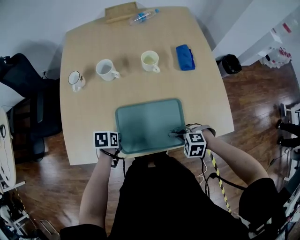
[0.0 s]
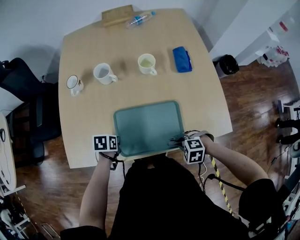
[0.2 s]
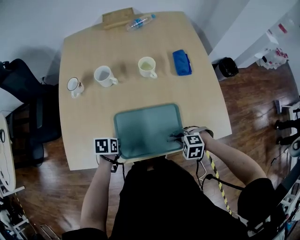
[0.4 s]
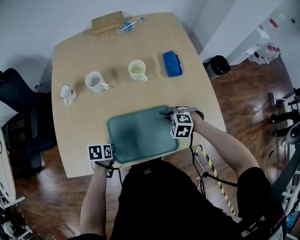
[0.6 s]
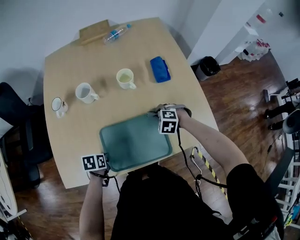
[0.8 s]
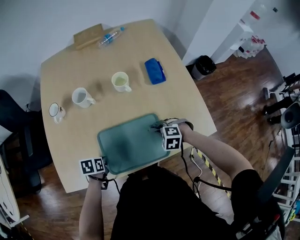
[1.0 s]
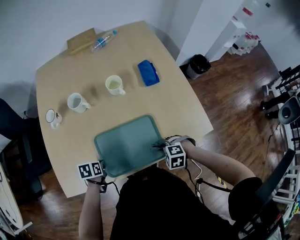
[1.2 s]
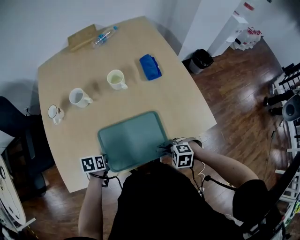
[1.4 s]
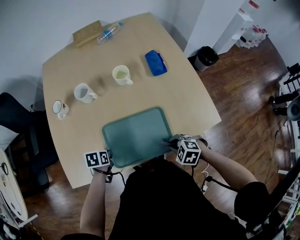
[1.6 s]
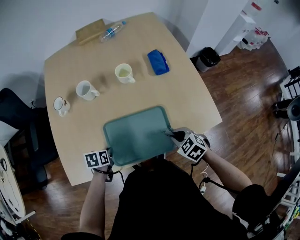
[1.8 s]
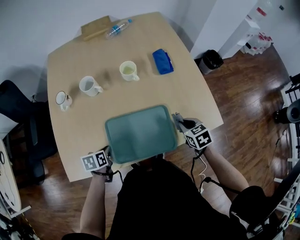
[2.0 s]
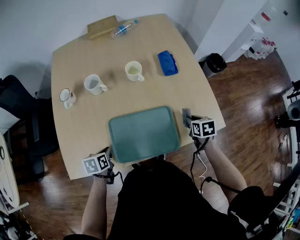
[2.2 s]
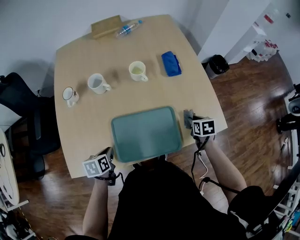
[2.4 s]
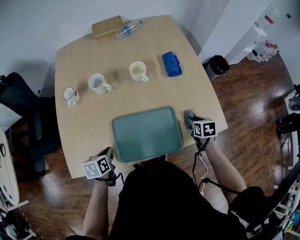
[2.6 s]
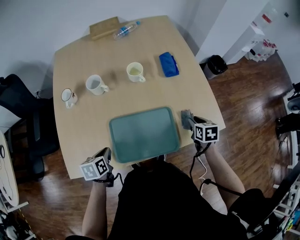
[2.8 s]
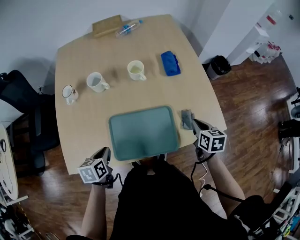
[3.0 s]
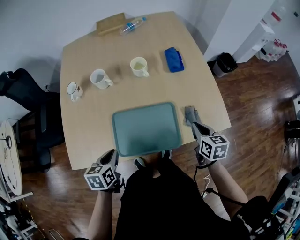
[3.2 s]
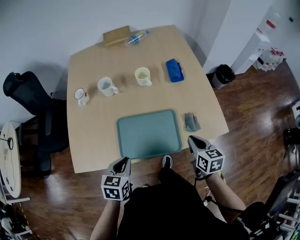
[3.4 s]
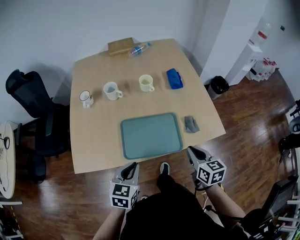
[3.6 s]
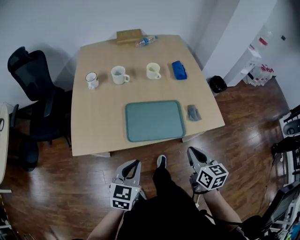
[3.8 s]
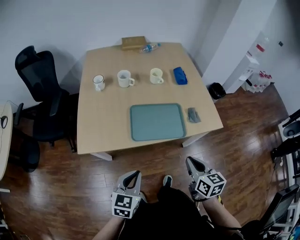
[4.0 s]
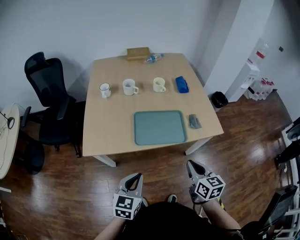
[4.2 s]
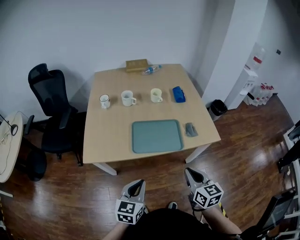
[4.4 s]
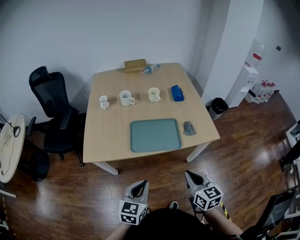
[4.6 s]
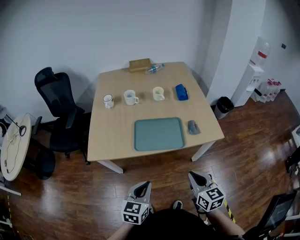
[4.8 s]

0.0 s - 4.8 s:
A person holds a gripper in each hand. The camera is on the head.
0.0 s - 1.6 s: The right gripper changes its angle by roughly 20 degrees.
1.6 s - 3.2 s: The left gripper shifts approximately 10 cm upward, and changes its angle by about 30 degrees, while the right gripper shifts some 15 cm to the right, upward and forward, twists approximately 60 degrees clockwise, seen from behind, and opens, then closes once more.
3.2 s - 4.8 s: The right gripper goes about 30 cm backward, and changes its angle by some 20 degrees. The left gripper travels backward and to the right by approximately 30 cm, and rotates roughly 30 degrees.

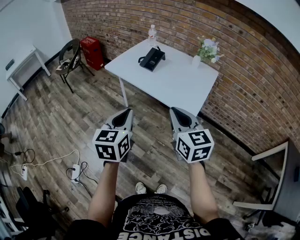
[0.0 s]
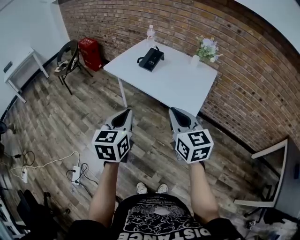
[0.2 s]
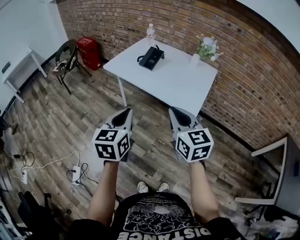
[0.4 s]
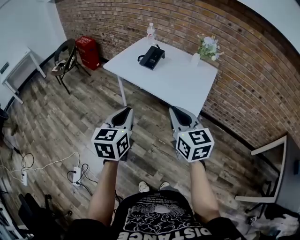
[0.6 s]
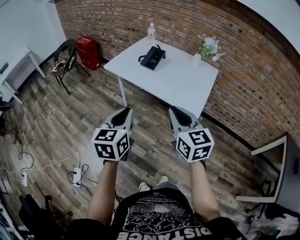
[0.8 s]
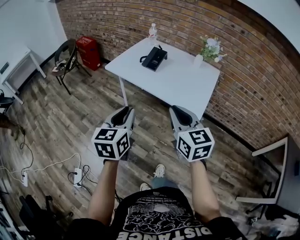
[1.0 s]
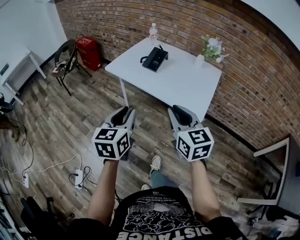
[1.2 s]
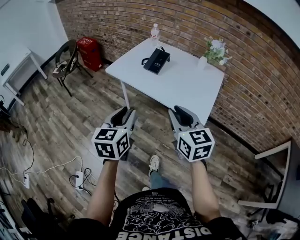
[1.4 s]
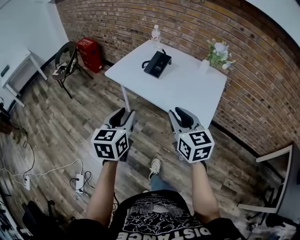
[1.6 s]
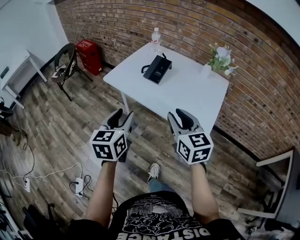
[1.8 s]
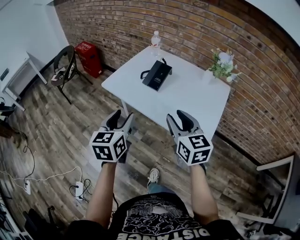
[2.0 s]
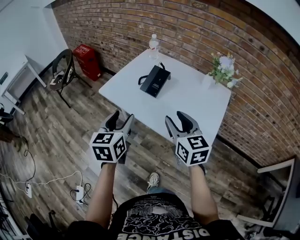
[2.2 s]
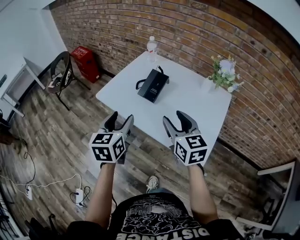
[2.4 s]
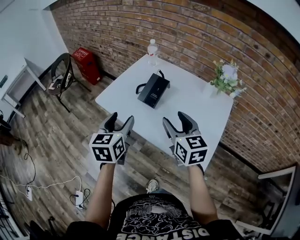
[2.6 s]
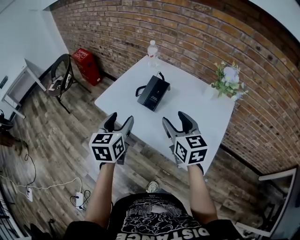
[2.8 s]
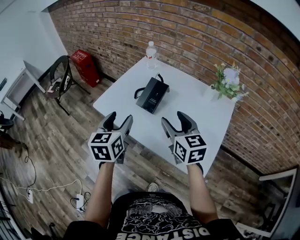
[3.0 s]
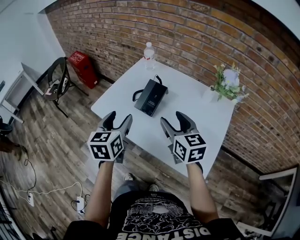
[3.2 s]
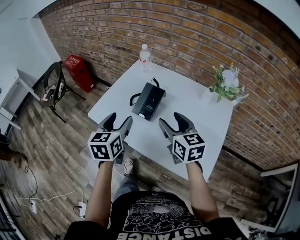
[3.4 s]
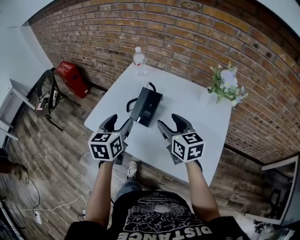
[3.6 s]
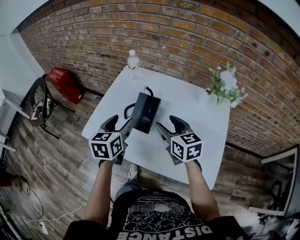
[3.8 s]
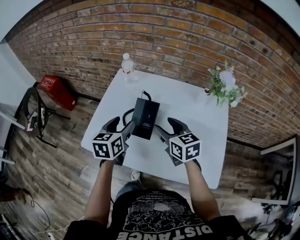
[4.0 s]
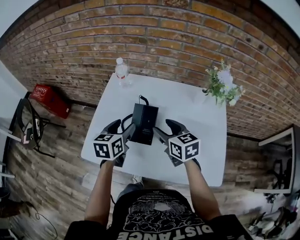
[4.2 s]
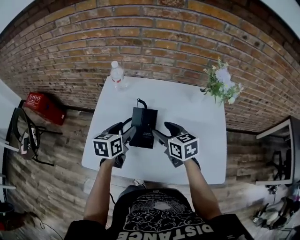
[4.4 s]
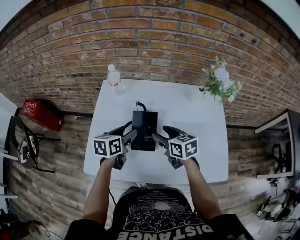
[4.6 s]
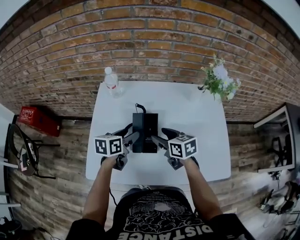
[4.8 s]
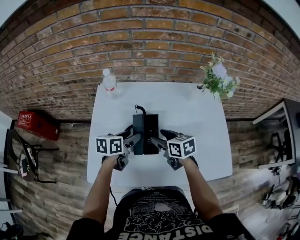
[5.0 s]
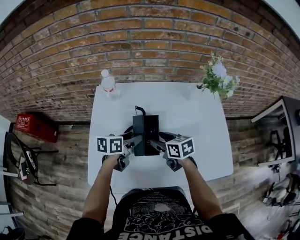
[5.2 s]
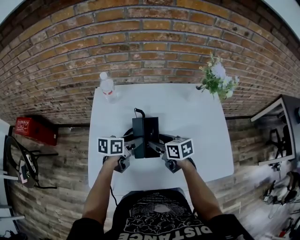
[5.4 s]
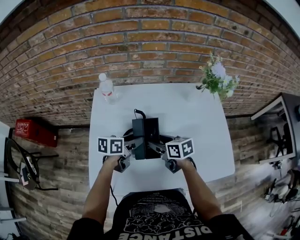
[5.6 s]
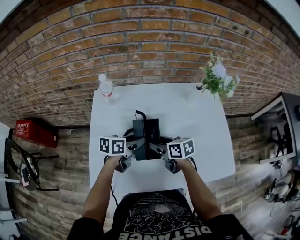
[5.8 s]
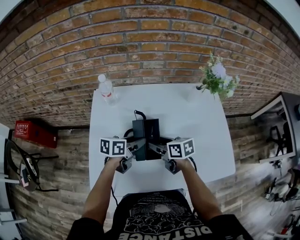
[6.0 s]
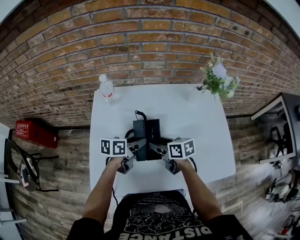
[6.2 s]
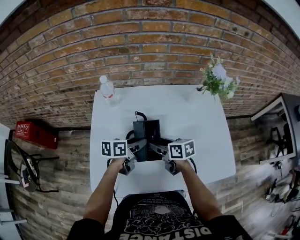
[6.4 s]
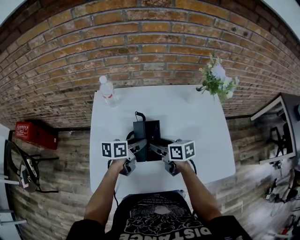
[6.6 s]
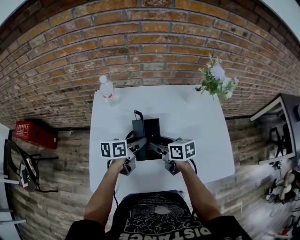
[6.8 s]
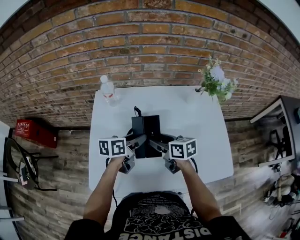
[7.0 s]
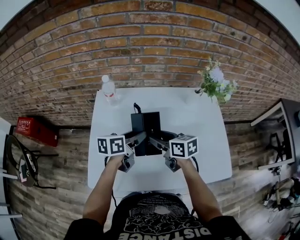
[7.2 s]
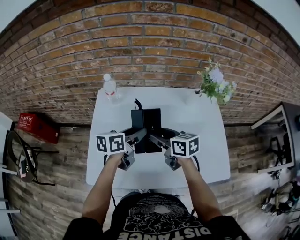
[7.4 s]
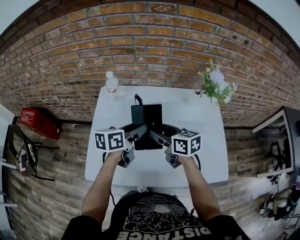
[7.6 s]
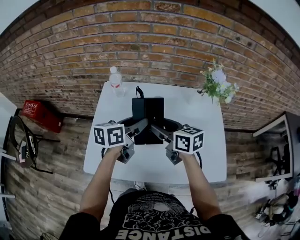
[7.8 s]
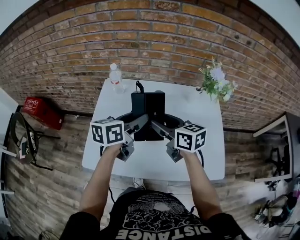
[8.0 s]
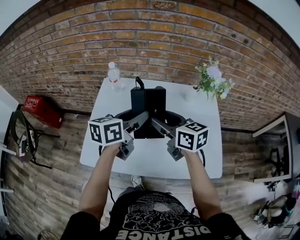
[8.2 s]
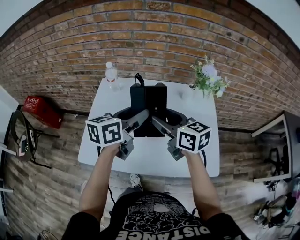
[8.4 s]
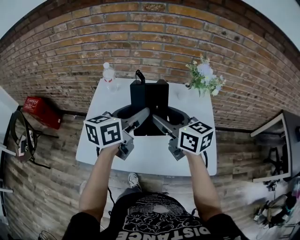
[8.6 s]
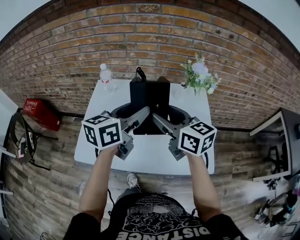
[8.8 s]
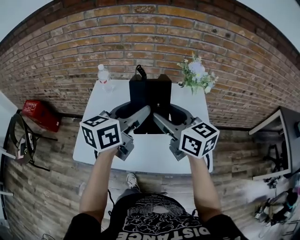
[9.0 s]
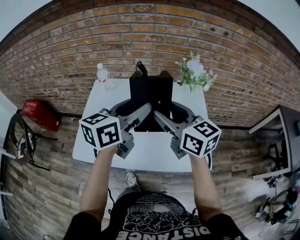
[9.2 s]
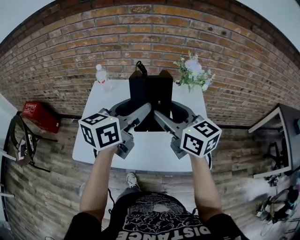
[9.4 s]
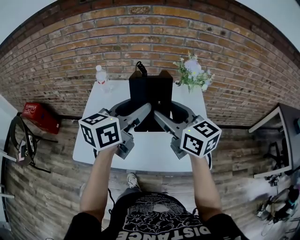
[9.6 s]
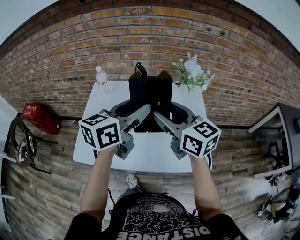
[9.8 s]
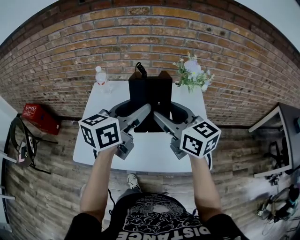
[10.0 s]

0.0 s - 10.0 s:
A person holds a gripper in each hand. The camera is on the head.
0.0 s - 1.4 s: The right gripper travels forward by approximately 10 cm. Meanwhile the left gripper goes about 10 cm forward and to the left, and opens its fingers.
1.4 s - 2.8 s: Both grippers move forward, roughly 30 cm. The right gripper opens up. The left gripper opens its fingers.
2.8 s - 4.2 s: The right gripper heads forward and downward, covering about 20 cm. The left gripper is displaced forward by about 25 cm, and swivels approximately 30 degrees.
4.2 s - 5.8 s: The left gripper moves downward and forward, approximately 10 cm, and changes its angle by some 40 degrees. The right gripper goes roughly 10 cm downward, and changes its angle by approximately 30 degrees.
5.8 s - 7.2 s: Both grippers travel together upward, about 5 cm.
7.2 s - 8.6 s: The right gripper moves upward and to the right, about 20 cm, and turns by roughly 20 degrees. Meanwhile the left gripper heads upward and backward, covering some 20 cm, and rotates approximately 20 degrees.
8.6 s - 10.0 s: Both grippers travel together upward and to the right, some 5 cm.

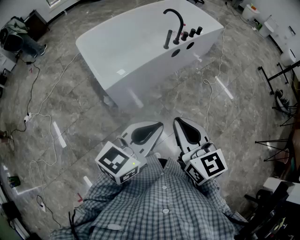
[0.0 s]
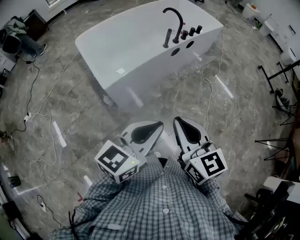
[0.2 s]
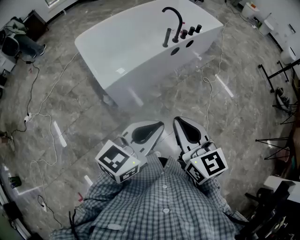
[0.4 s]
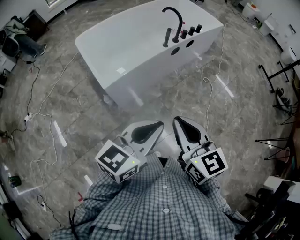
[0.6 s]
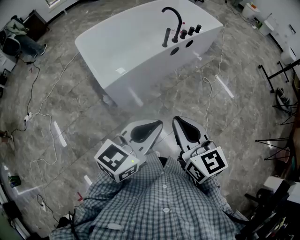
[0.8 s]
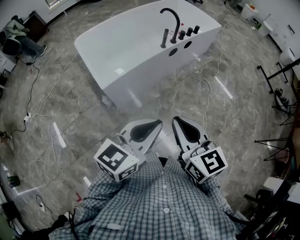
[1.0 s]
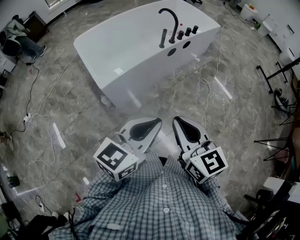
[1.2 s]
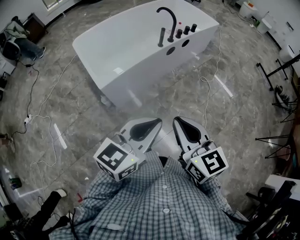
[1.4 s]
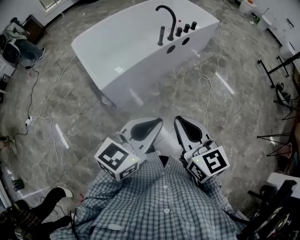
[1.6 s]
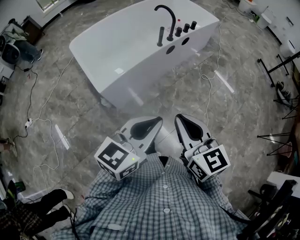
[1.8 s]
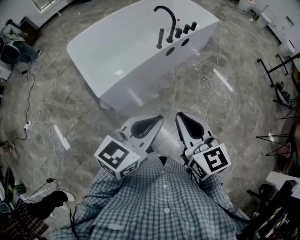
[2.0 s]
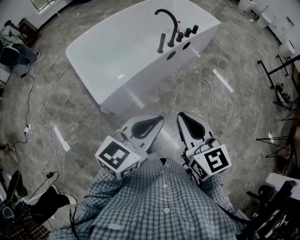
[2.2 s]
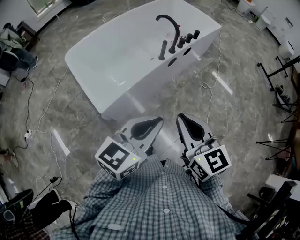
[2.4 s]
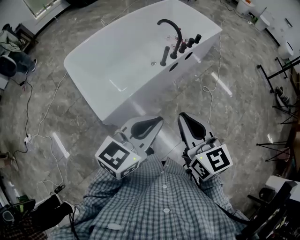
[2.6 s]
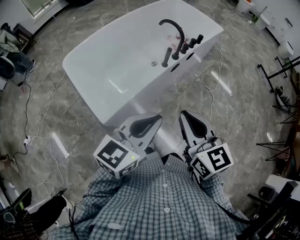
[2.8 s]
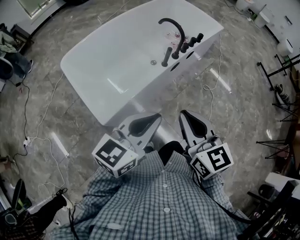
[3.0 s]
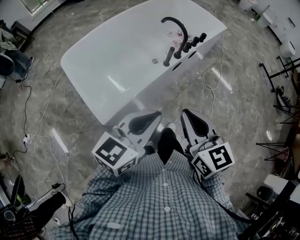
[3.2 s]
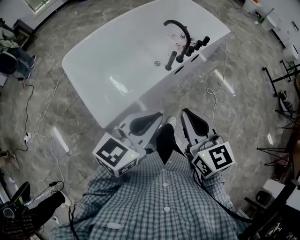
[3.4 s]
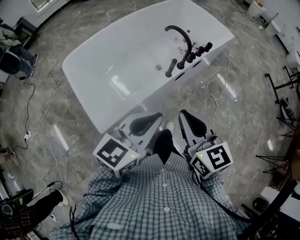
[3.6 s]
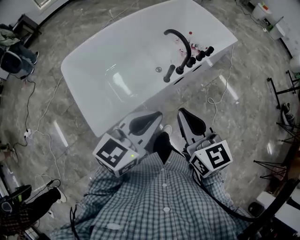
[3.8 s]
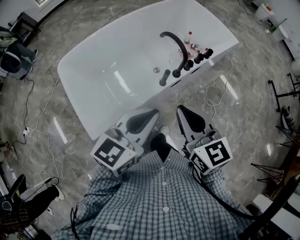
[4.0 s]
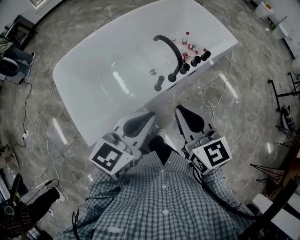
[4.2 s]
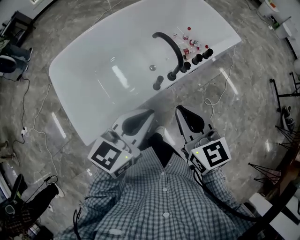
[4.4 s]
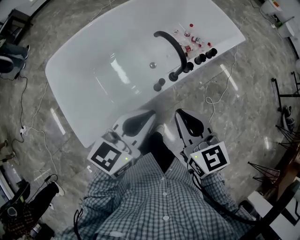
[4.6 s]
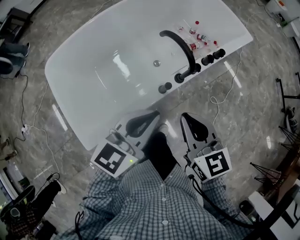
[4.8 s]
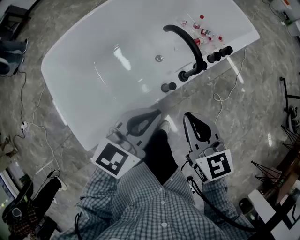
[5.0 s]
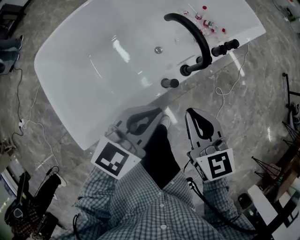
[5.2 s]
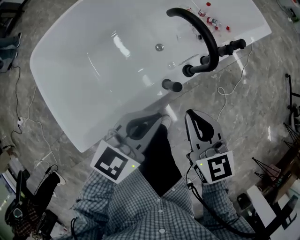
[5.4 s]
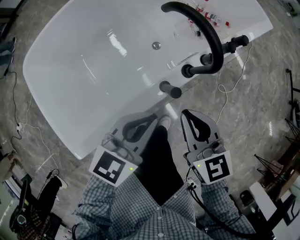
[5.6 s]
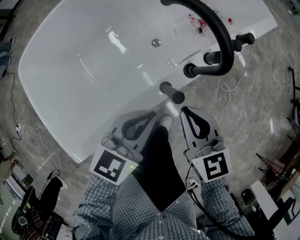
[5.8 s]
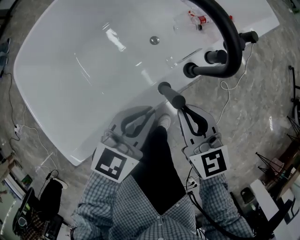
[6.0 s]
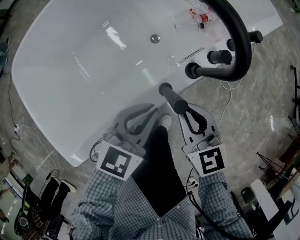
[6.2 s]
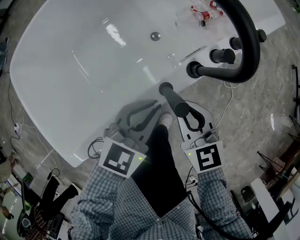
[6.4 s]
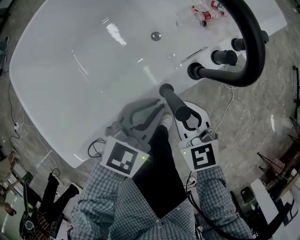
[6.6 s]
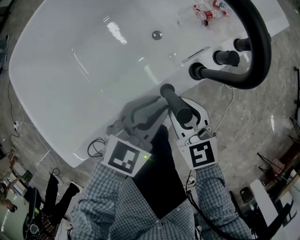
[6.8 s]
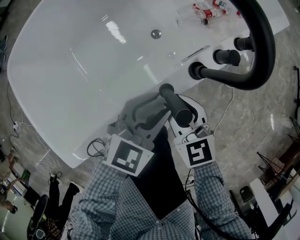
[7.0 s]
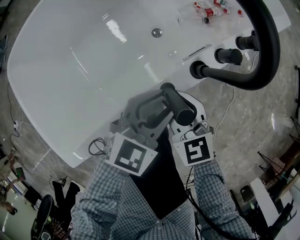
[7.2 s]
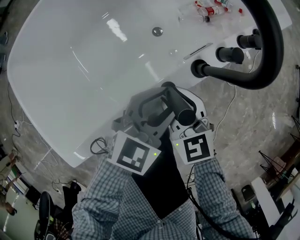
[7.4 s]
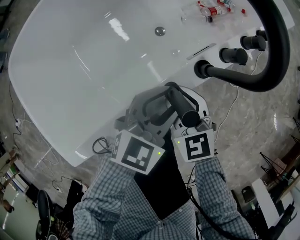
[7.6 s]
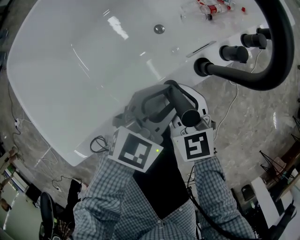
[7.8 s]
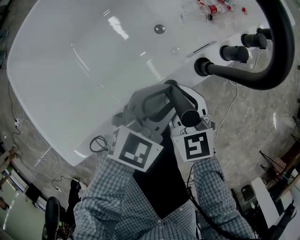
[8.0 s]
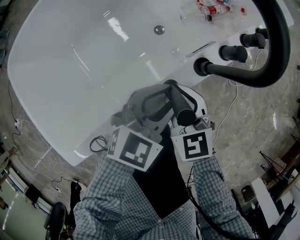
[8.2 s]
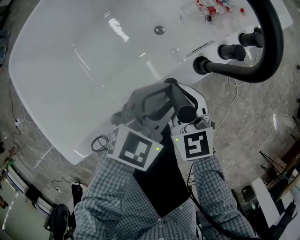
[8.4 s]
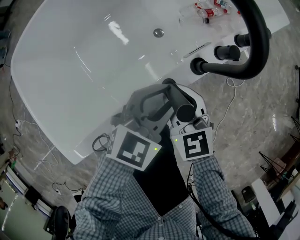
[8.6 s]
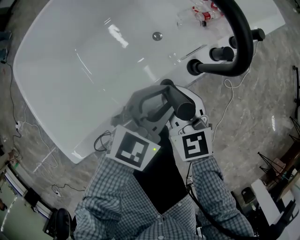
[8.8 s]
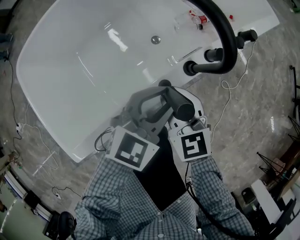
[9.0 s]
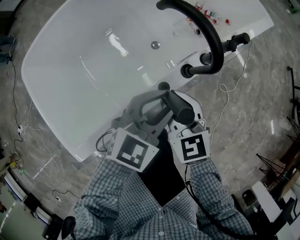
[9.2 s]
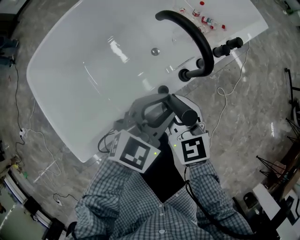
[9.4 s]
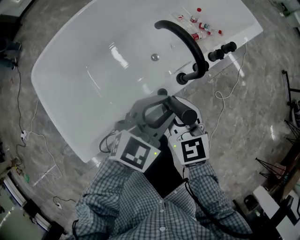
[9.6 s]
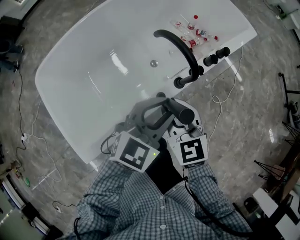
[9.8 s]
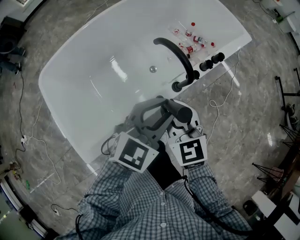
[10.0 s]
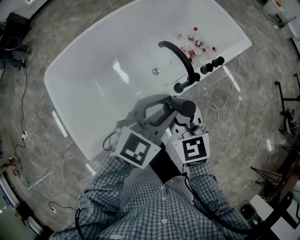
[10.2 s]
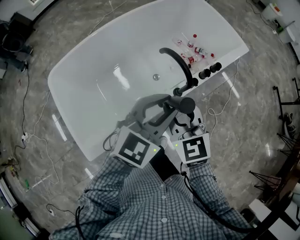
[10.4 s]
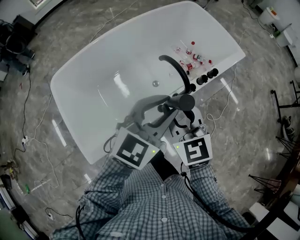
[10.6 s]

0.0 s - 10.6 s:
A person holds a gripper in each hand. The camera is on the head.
0.0 s - 1.6 s: The grippers stay close to where they were, moving slightly.
1.6 s - 3.0 s: The grippers both shift forward and to the left by some 30 cm.
3.0 s - 4.6 s: The two grippers go roughly 35 cm forward.
4.6 s - 6.0 s: Both grippers travel together downward, about 25 cm.
6.0 s - 7.6 s: The right gripper travels downward by roughly 10 cm, and opens its fingers; the left gripper travels downward by some 5 cm, and opens its fingers.
7.6 s - 9.0 s: The grippers both shift upward by about 10 cm.
9.0 s - 10.6 s: Both grippers move upward, about 30 cm.
